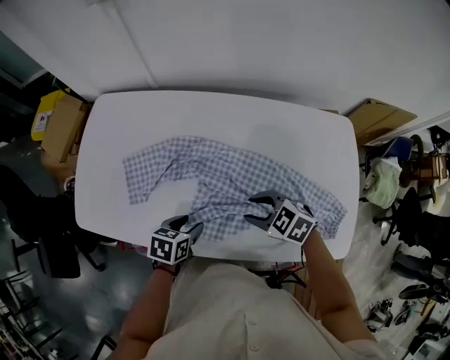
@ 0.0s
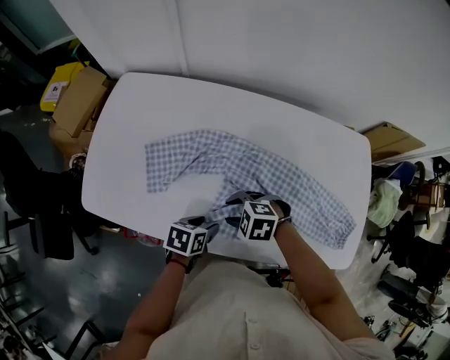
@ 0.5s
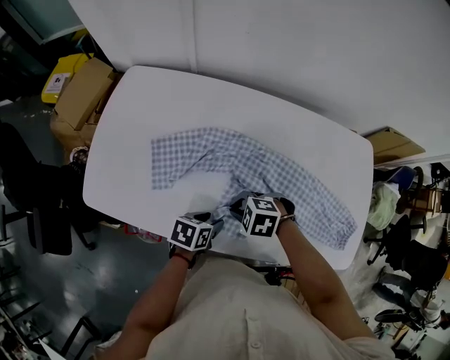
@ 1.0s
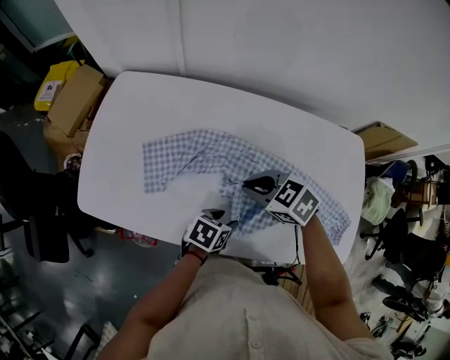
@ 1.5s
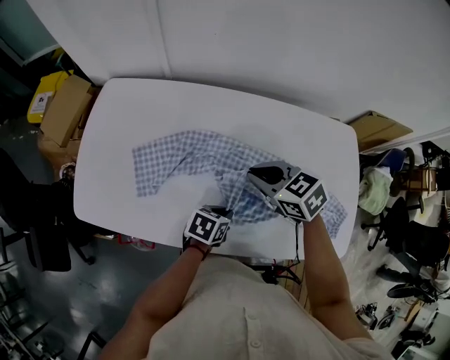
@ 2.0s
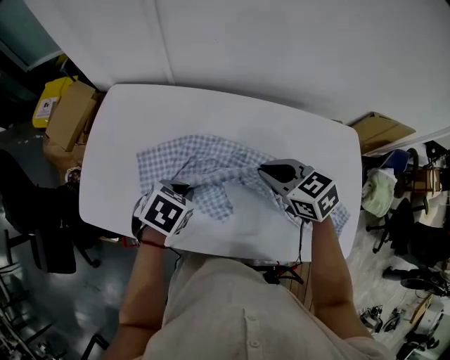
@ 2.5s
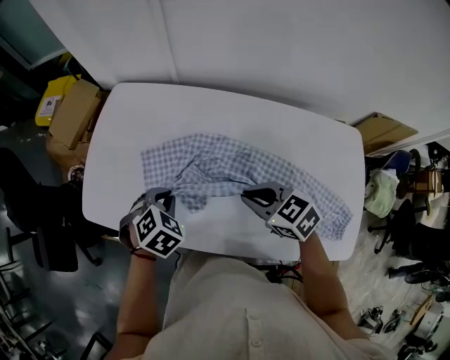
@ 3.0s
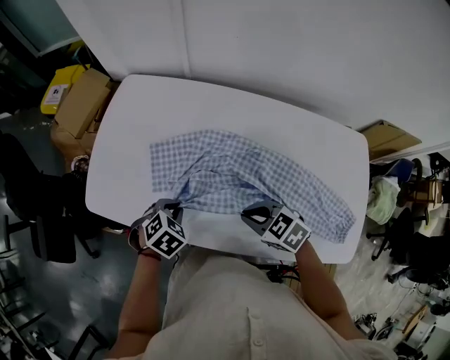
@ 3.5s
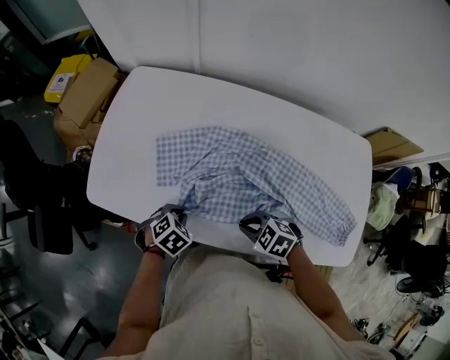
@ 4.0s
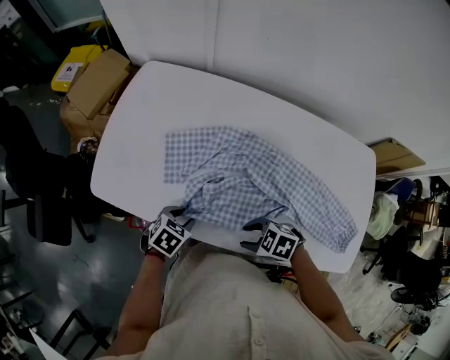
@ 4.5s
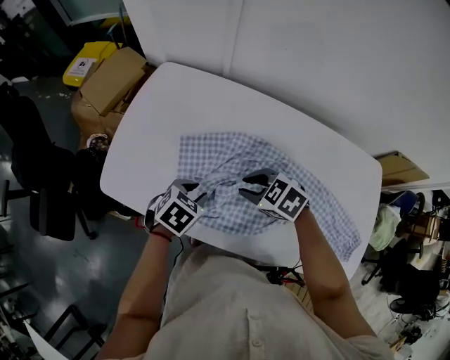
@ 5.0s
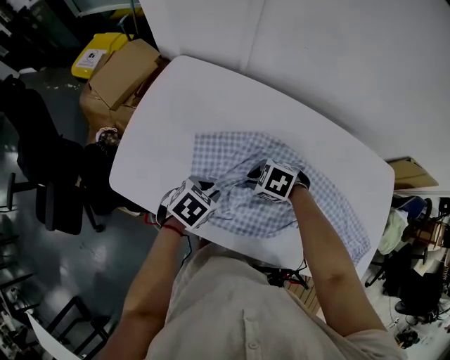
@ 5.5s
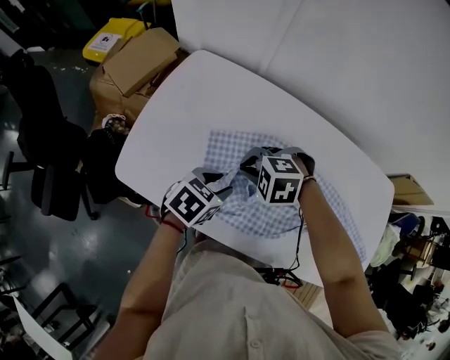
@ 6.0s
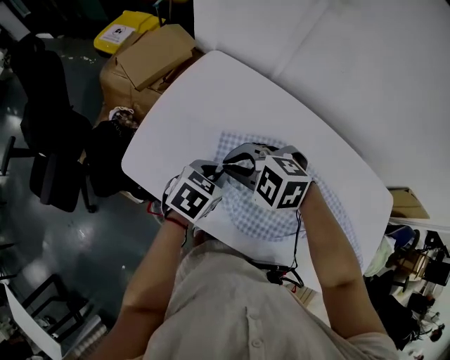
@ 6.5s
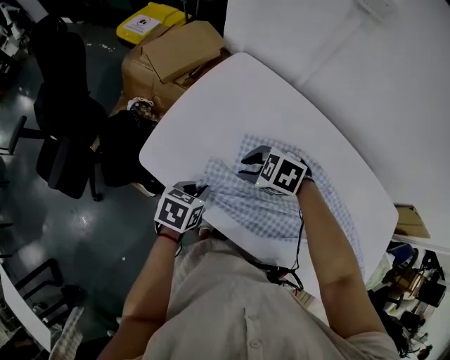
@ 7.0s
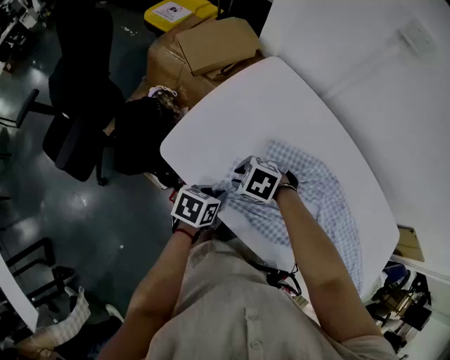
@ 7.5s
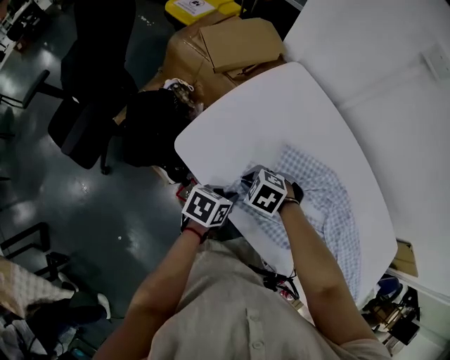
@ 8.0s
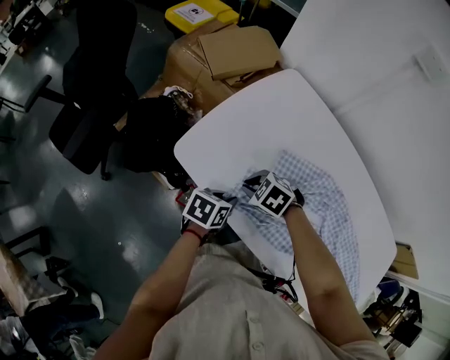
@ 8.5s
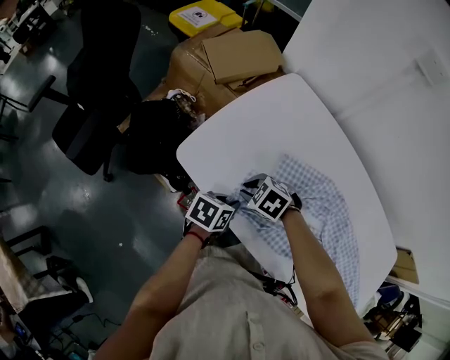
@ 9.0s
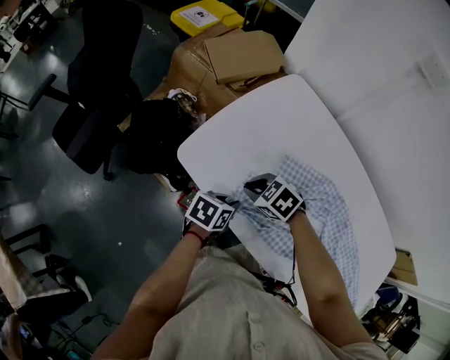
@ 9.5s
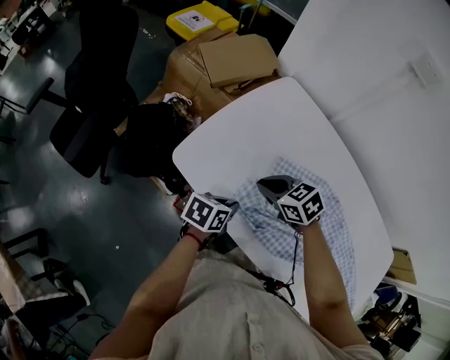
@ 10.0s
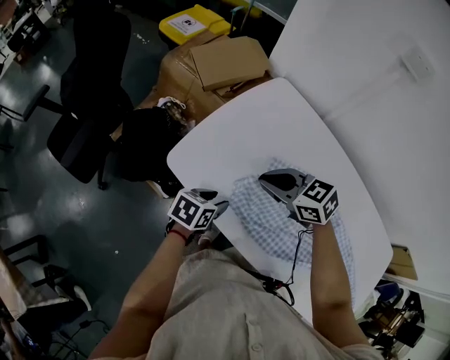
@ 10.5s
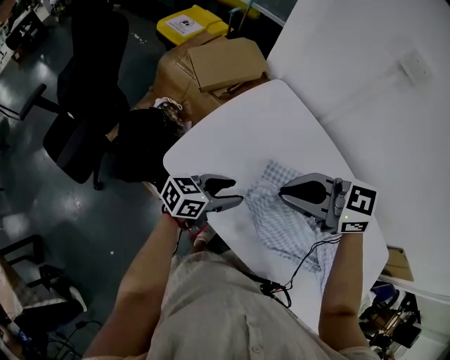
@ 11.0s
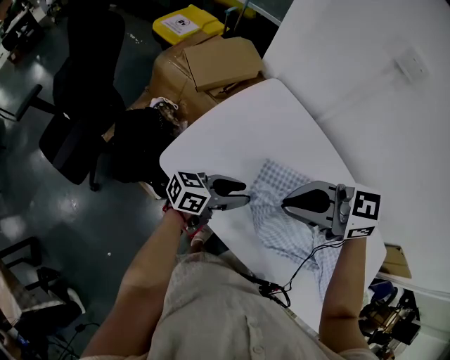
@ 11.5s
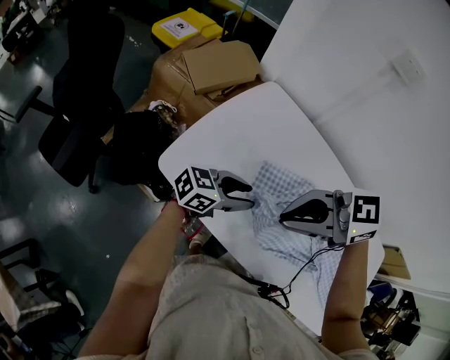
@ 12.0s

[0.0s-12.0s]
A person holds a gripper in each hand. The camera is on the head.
0.0s to 2.0s: The right gripper shifts by about 15 cm, and closes, while the left gripper changes place by approximately 5 cm, and closes its fingers.
2.0s to 4.0s: The right gripper ends up roughly 20 cm from where it was, and rotates about 30 degrees, while the left gripper reaches roughly 10 cm upward, then returns, and rotates approximately 40 degrees.
4.0s to 6.0s: The left gripper ends up some 15 cm from where it was, rotates about 30 degrees, and opens; the right gripper swings up and down, roughly 10 cm each way, with 2 reversals, rotates approximately 40 degrees, and opens, then closes once more.
6.0s to 8.0s: The right gripper shifts by about 20 cm, while the left gripper shifts by about 20 cm, changes its angle by some 40 degrees, and closes up.
8.0s to 10.0s: The right gripper heads upward, covering approximately 10 cm, and changes its angle by about 40 degrees.
10.0s to 12.0s: The left gripper heads upward, covering some 10 cm, swivels approximately 50 degrees, and opens up. Meanwhile the right gripper is displaced upward by approximately 20 cm, and changes its angle by approximately 40 degrees.

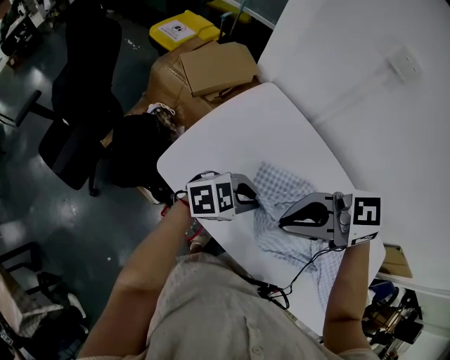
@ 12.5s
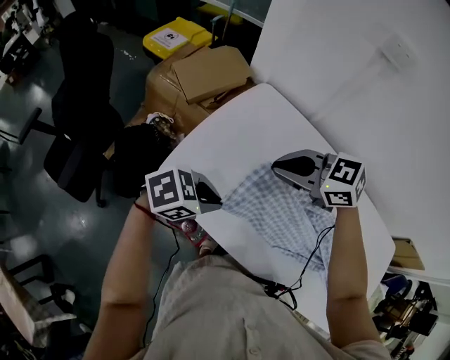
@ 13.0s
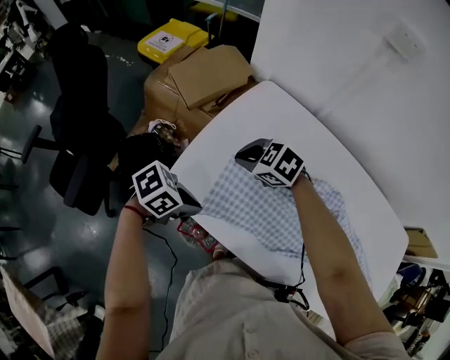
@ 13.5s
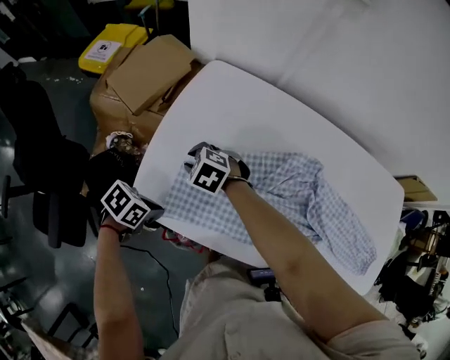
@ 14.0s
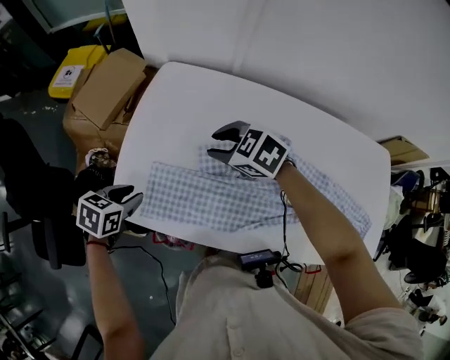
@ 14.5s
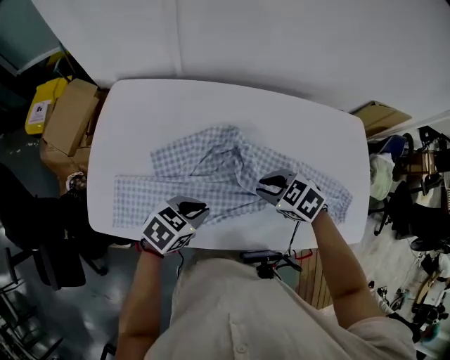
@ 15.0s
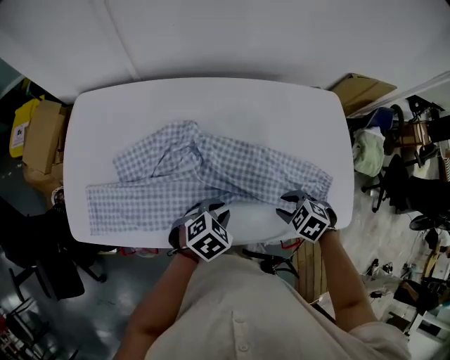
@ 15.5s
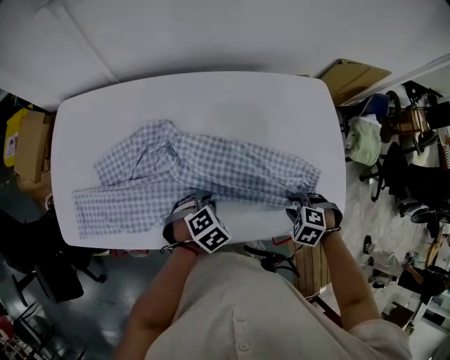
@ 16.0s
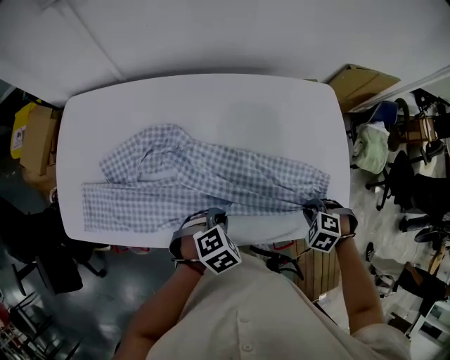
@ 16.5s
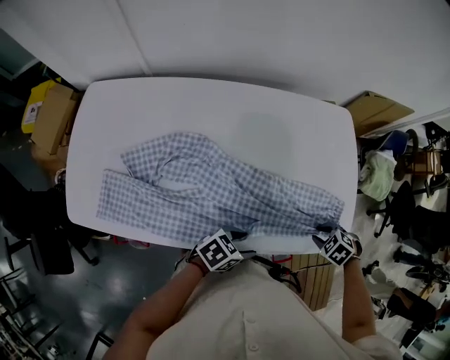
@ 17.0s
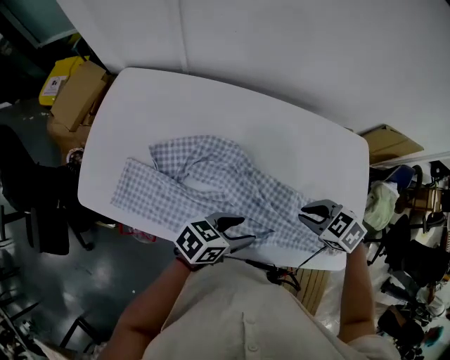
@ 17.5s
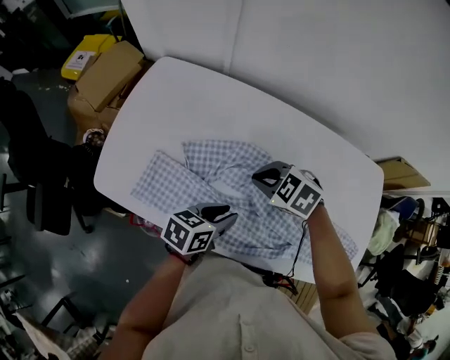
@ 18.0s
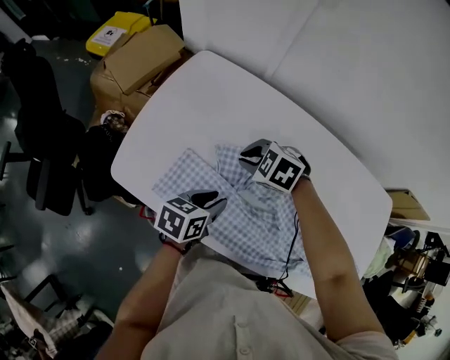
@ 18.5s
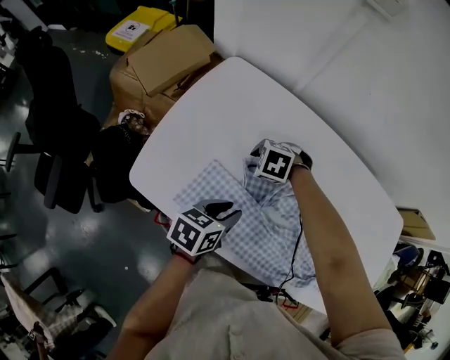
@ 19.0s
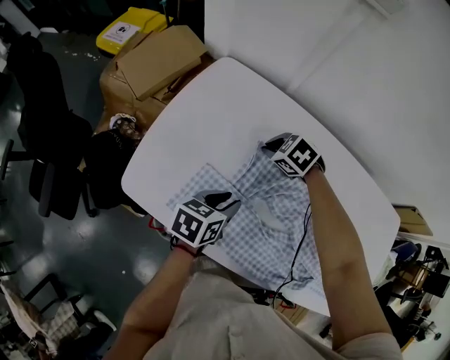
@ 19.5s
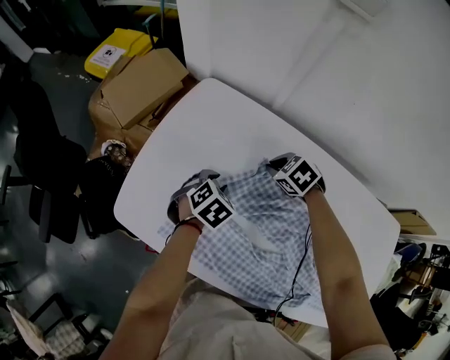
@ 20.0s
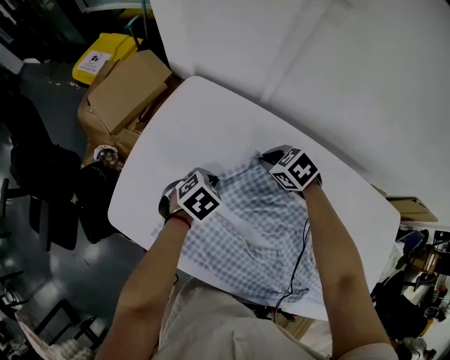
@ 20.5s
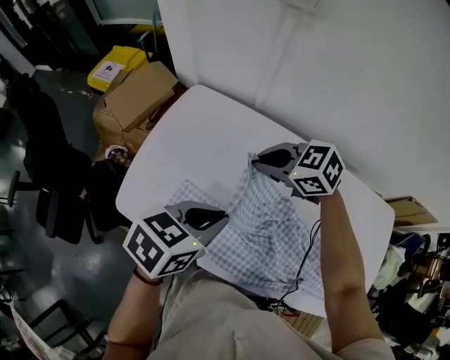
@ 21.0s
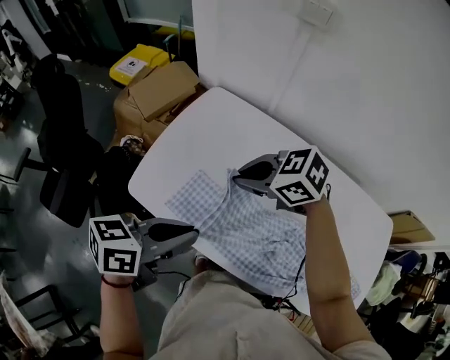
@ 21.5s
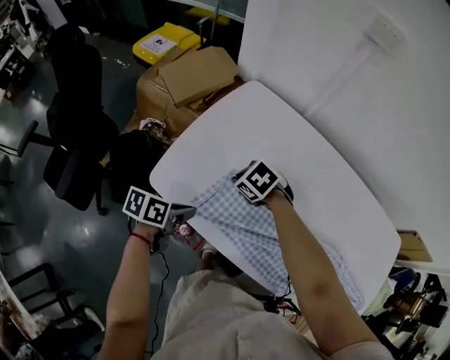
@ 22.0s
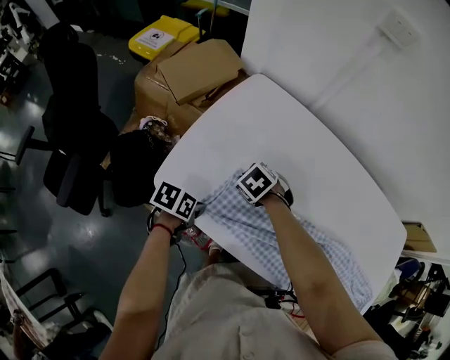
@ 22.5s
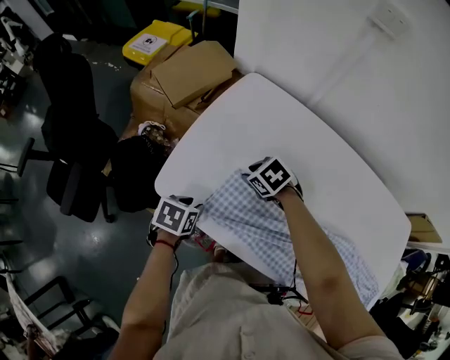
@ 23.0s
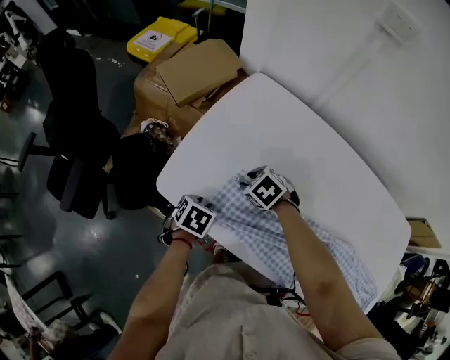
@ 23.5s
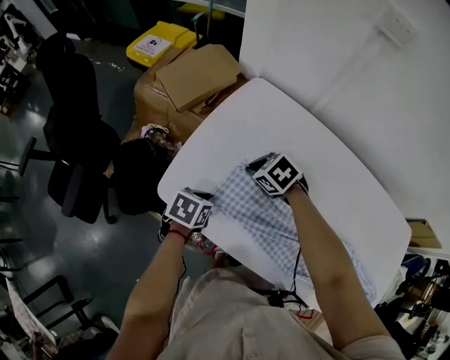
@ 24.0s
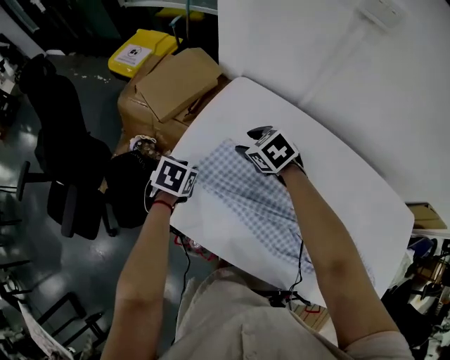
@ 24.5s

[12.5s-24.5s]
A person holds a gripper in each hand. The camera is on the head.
12.5s to 14.5s: The right gripper moves downward, about 20 cm, rotates about 50 degrees, and opens; the left gripper shifts by approximately 20 cm, swivels roughly 40 degrees, and opens its fingers.
14.5s to 16.5s: Both grippers are carried about 60 cm. The left gripper rolls clockwise, seen from behind, by about 50 degrees, and closes its fingers, while the right gripper angles its fingers downward, by some 40 degrees, and closes its fingers.
16.5s to 18.5s: The right gripper ends up approximately 60 cm from where it was, and turns by some 40 degrees; the left gripper changes place by about 30 cm, rolls counterclockwise, seen from behind, by some 70 degrees, and opens its fingers.
18.5s to 20.5s: The right gripper shifts by approximately 15 cm, changes its angle by approximately 20 degrees, and opens, then closes again. The left gripper ends up approximately 20 cm from where it was, turns by about 40 degrees, and closes.
20.5s to 22.5s: The right gripper travels upward and back again, roughly 20 cm each way. Meanwhile the left gripper goes upward and returns, some 25 cm each way, and rotates around the line of its fingers by about 50 degrees, counterclockwise from behind.
22.5s to 24.5s: The left gripper shifts by roughly 20 cm, and turns by roughly 30 degrees, while the right gripper shifts by about 15 cm, and opens.

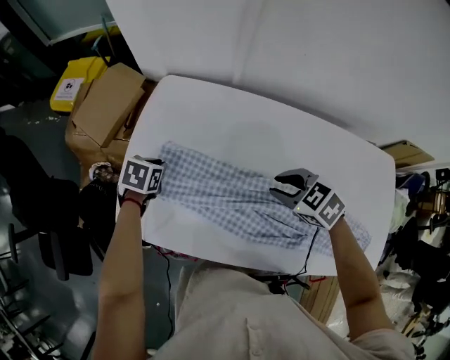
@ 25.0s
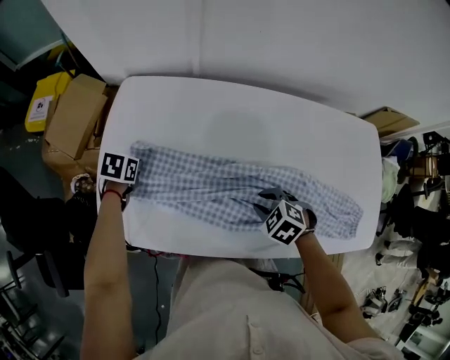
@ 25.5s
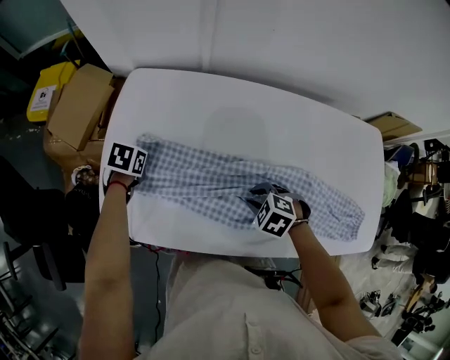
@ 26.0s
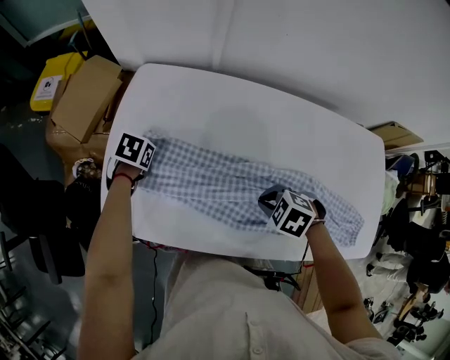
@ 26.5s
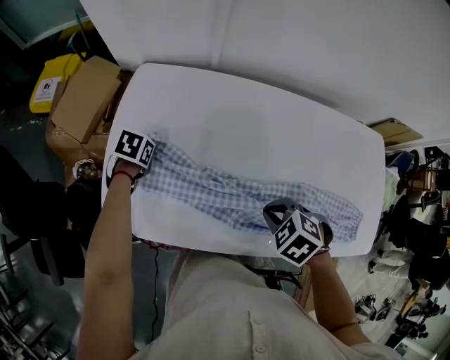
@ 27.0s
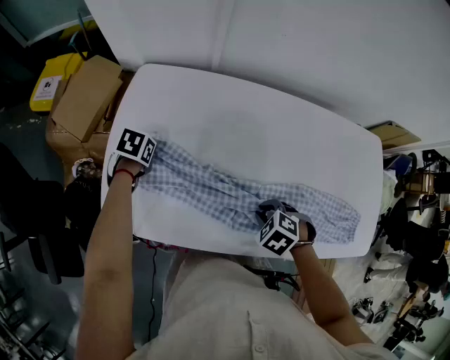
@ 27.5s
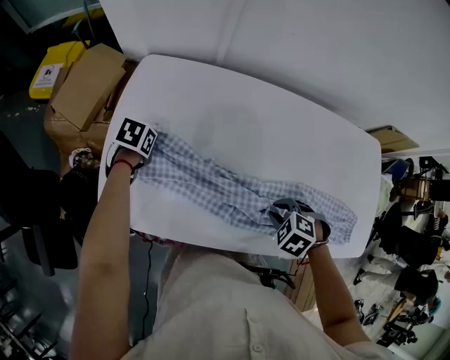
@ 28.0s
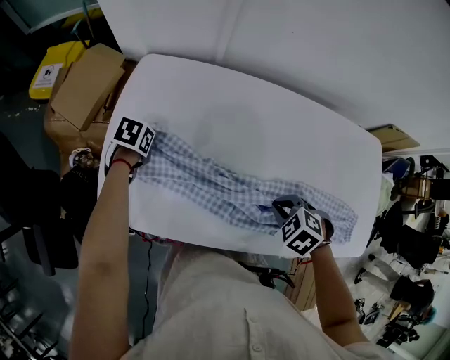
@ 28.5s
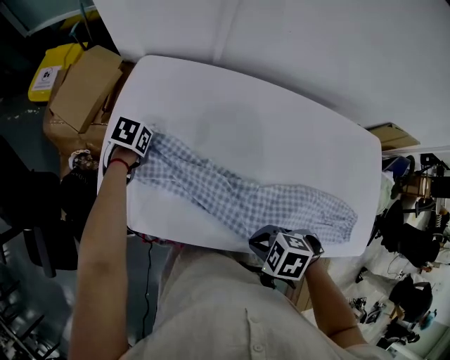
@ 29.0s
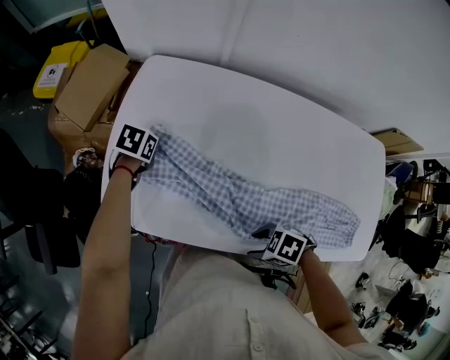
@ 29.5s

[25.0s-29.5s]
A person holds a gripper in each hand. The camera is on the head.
25.0s to 27.0s: The right gripper reaches approximately 10 cm downward, then returns, rotates approximately 20 degrees, and closes.
27.0s to 29.5s: The right gripper moves up and down over roughly 10 cm, changing direction 2 times, turns by roughly 30 degrees, and opens its fingers.
